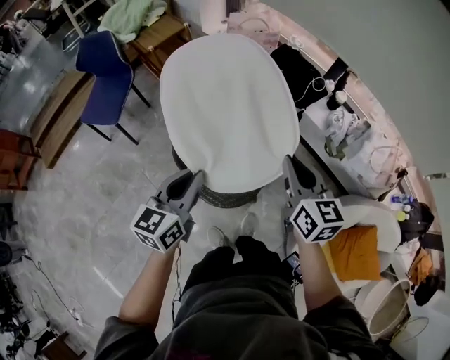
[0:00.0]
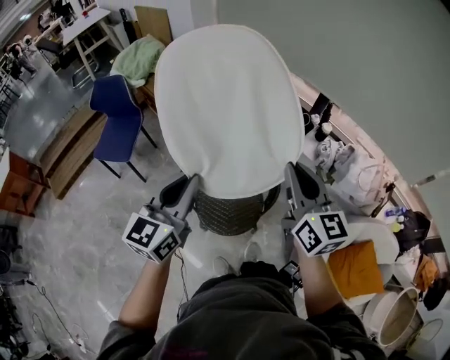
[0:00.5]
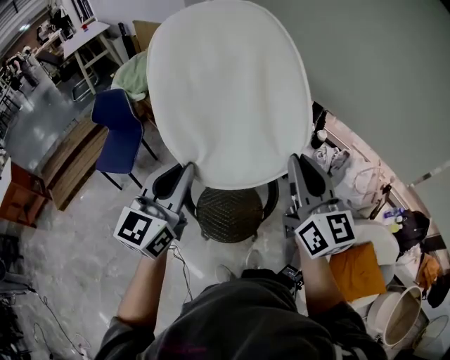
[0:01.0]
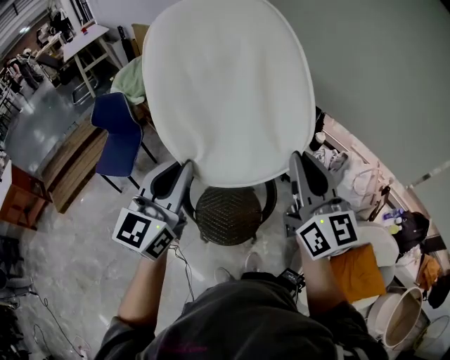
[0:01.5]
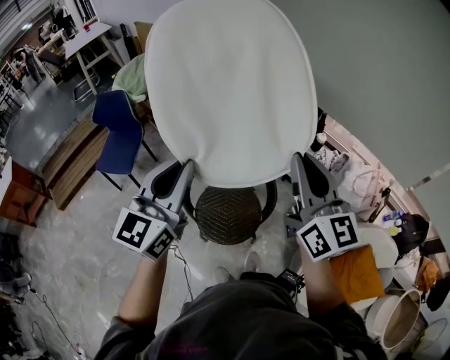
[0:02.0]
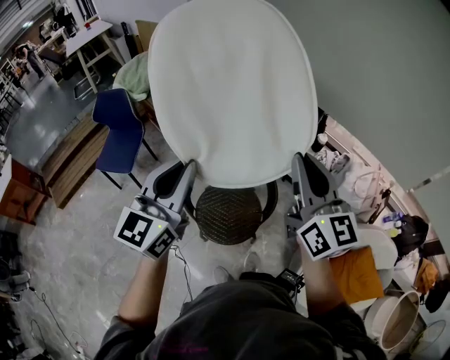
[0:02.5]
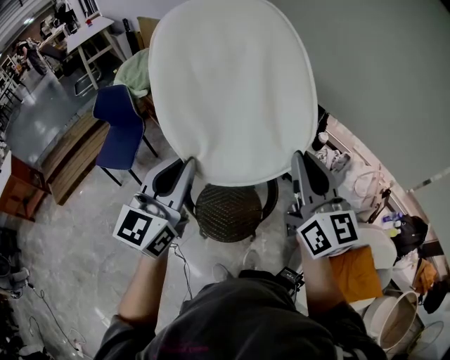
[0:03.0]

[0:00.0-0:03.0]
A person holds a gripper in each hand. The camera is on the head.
0:00.0 to 0:01.5: Both grippers move upward, some 30 cm. The right gripper turns by about 30 degrees; the left gripper rotates about 30 degrees.
0:01.5 to 0:03.0: Both grippers stay about where they are.

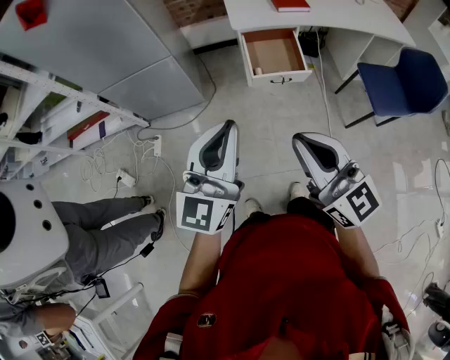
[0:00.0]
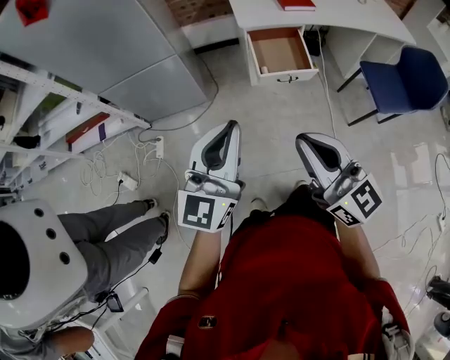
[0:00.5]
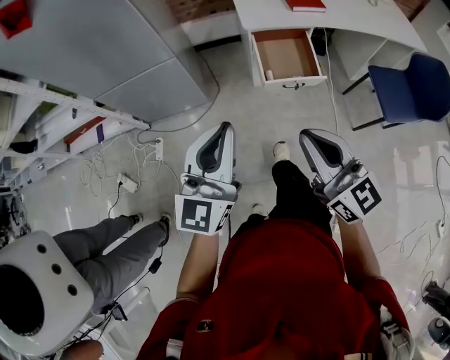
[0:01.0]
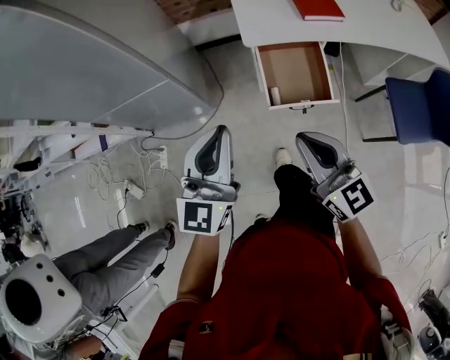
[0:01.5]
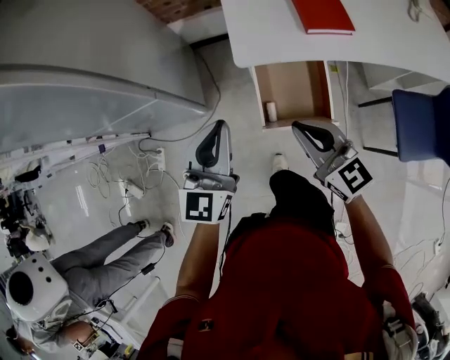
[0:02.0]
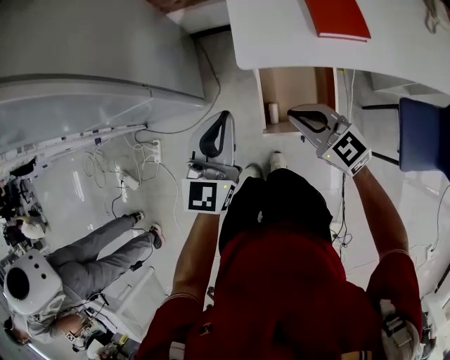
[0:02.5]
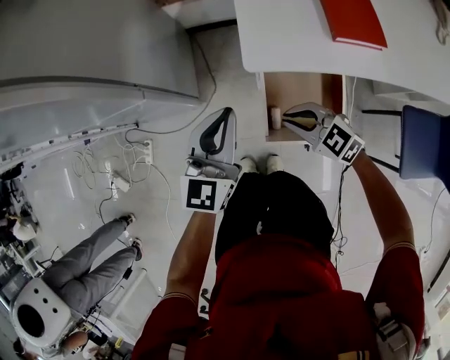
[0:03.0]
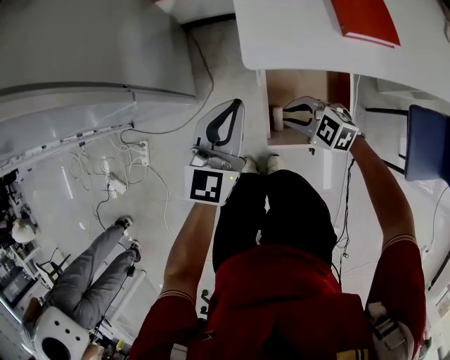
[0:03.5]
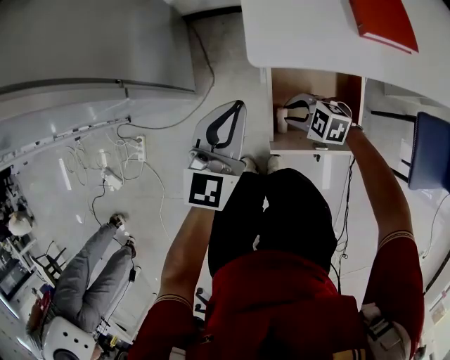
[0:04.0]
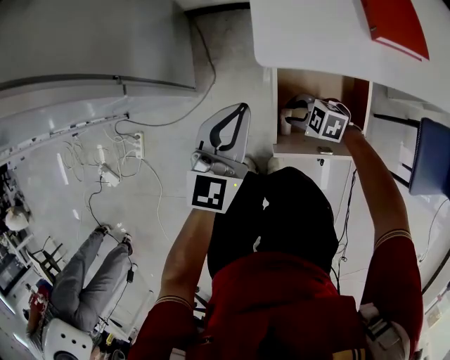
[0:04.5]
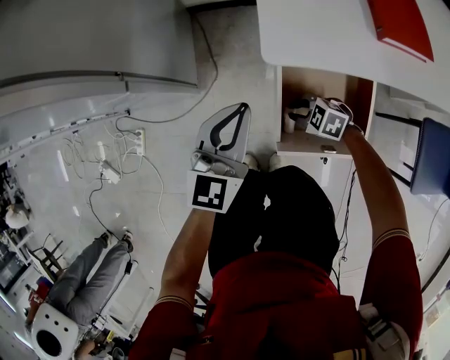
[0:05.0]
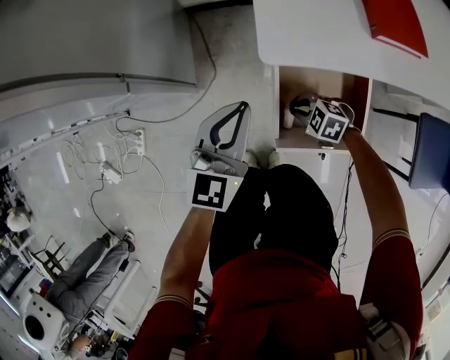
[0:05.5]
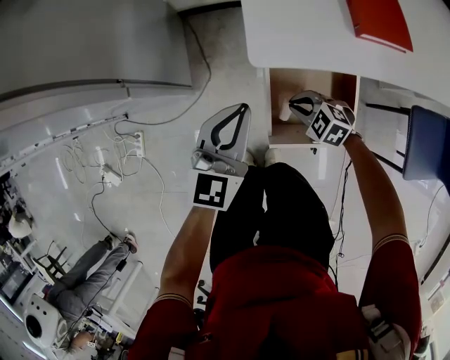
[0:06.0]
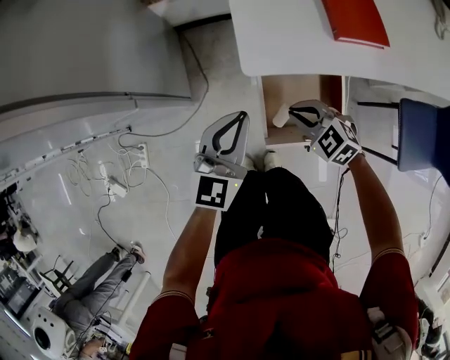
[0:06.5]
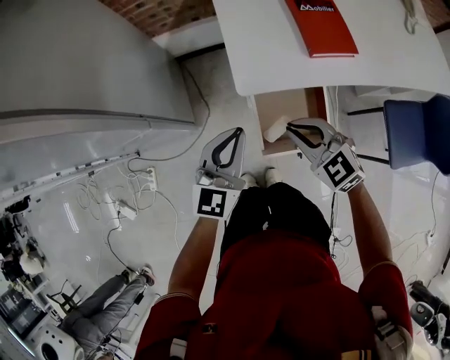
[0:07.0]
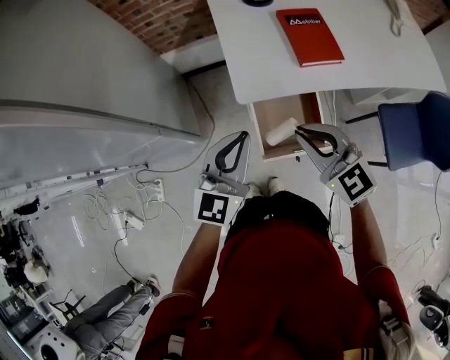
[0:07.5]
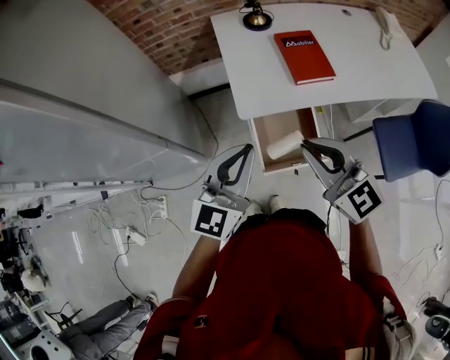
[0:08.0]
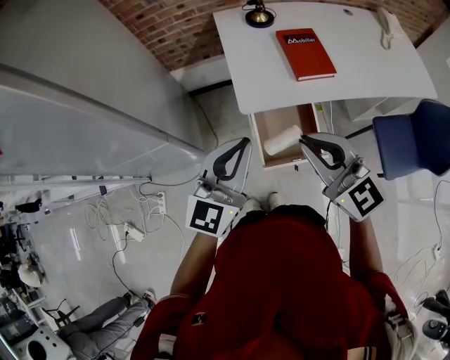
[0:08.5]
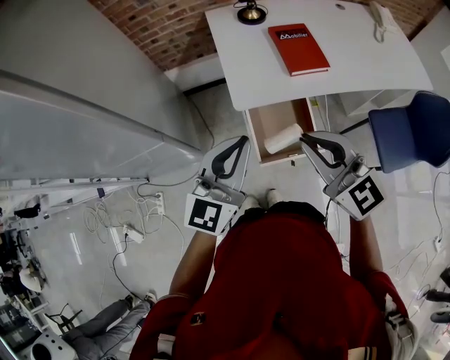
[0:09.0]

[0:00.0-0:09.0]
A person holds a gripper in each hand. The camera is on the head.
0:00.0 to 0:02.0: Both grippers are carried forward, some 50 cm. The right gripper shifts roughly 20 cm downward.
0:02.0 to 0:04.5: The right gripper moves downward, some 40 cm, tips its fingers downward by approximately 40 degrees, and opens up. The left gripper moves downward and forward, about 25 cm.
0:04.5 to 0:07.0: The left gripper shifts some 15 cm upward. Meanwhile the right gripper is displaced upward by about 35 cm, swivels about 40 degrees, and closes.
0:07.0 to 0:09.0: The left gripper shifts roughly 20 cm upward and backward; the right gripper heads upward, covering some 20 cm, and turns by some 30 degrees.

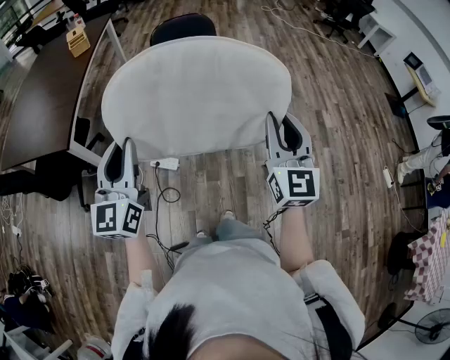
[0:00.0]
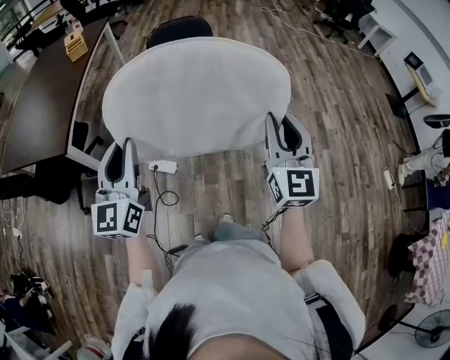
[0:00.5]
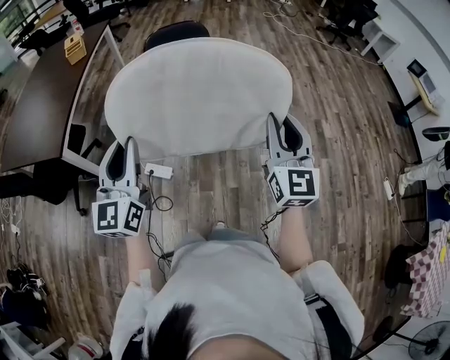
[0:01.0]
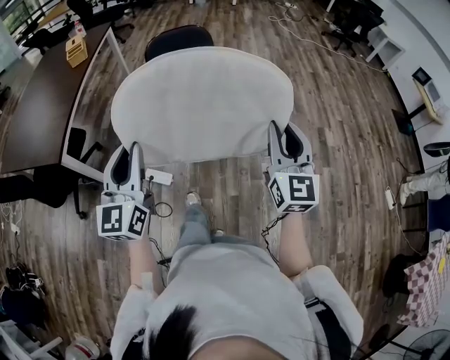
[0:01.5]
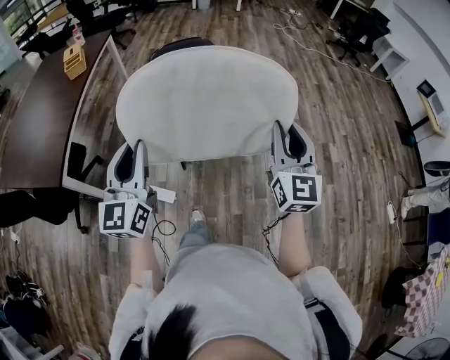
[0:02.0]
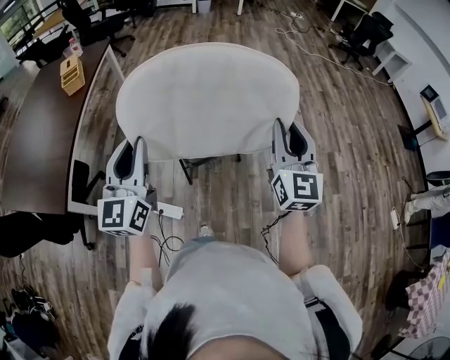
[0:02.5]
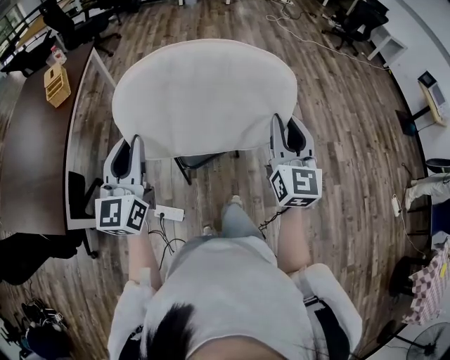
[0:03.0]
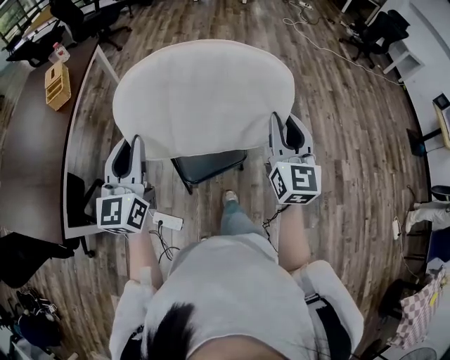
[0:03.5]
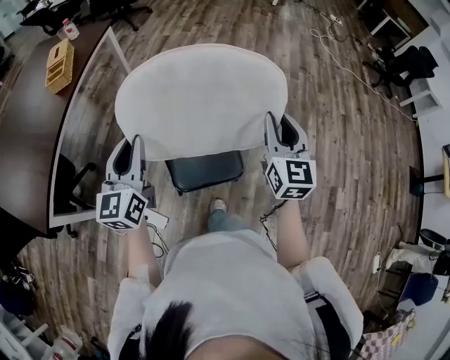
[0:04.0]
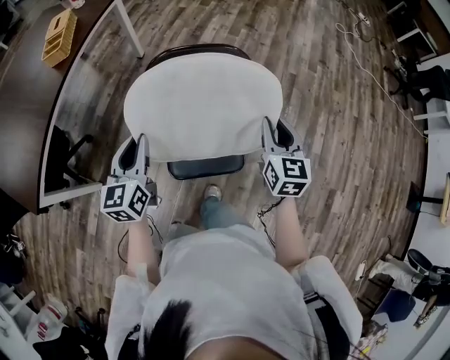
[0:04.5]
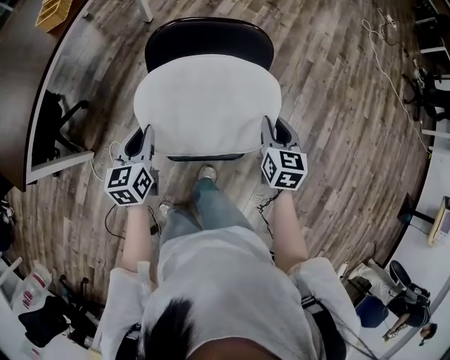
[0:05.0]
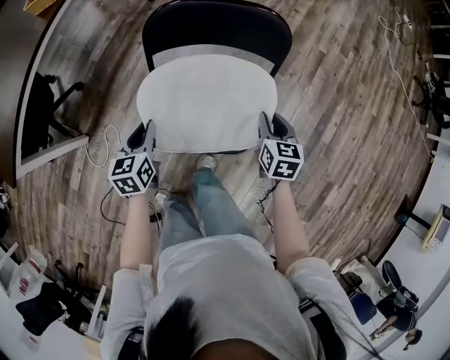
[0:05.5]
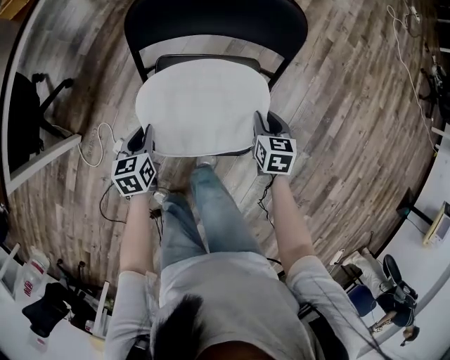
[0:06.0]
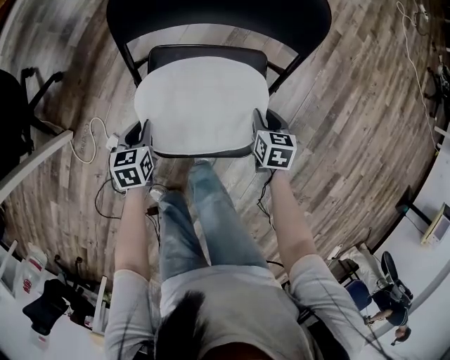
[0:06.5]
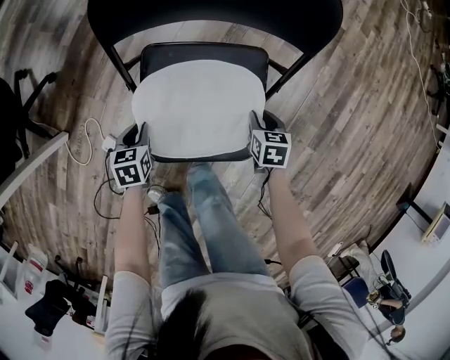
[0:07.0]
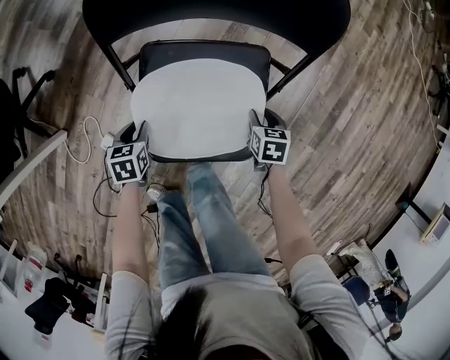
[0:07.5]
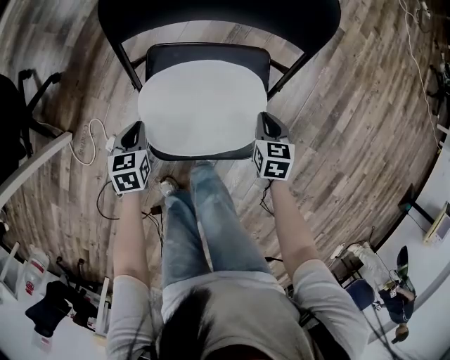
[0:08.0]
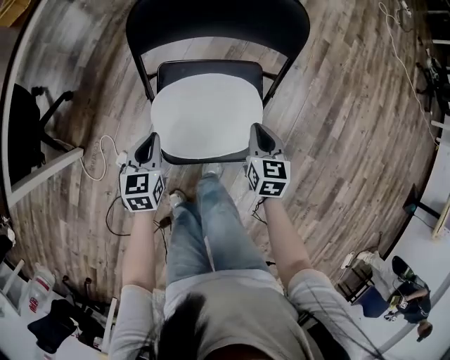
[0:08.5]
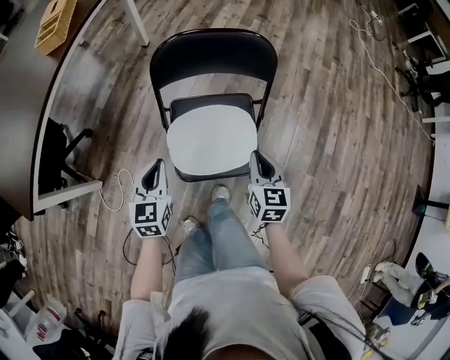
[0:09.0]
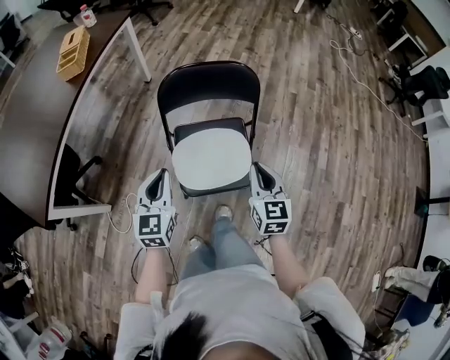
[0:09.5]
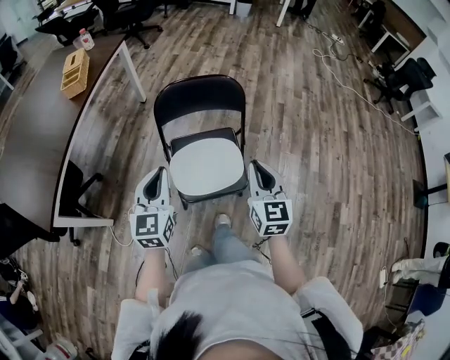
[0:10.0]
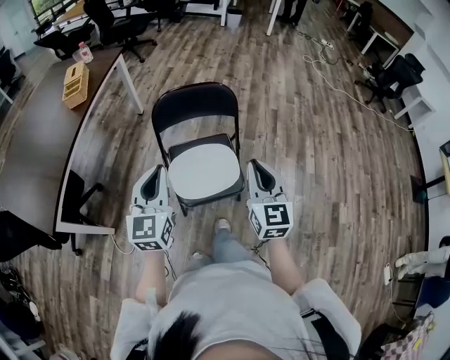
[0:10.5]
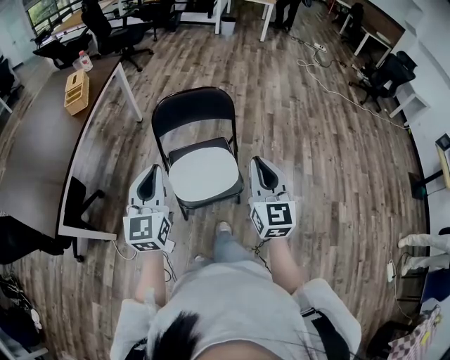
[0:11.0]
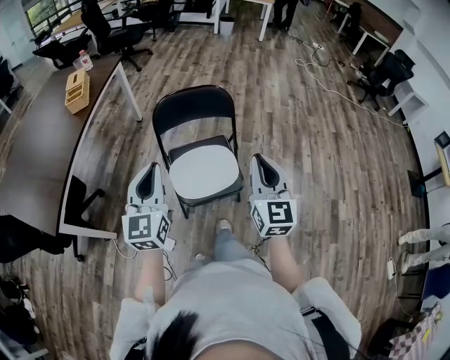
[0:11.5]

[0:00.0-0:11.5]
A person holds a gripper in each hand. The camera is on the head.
0:00.0 to 0:02.0: Both grippers travel together forward, approximately 20 cm.
0:02.0 to 0:04.0: Both grippers move forward, approximately 40 cm.
0:04.0 to 0:06.0: Both grippers travel together downward, about 40 cm. The right gripper angles its fingers downward, by approximately 40 degrees, while the left gripper tilts its fingers roughly 50 degrees downward.
0:06.0 to 0:07.5: The grippers both shift downward by approximately 15 cm.
0:07.5 to 0:09.5: Both grippers travel together upward, some 40 cm. The right gripper points its fingers approximately 40 degrees further upward, and closes up, while the left gripper tips its fingers upward by about 50 degrees.
0:09.5 to 0:11.5: Both grippers travel together upward and backward, approximately 20 cm. The right gripper swivels some 20 degrees.

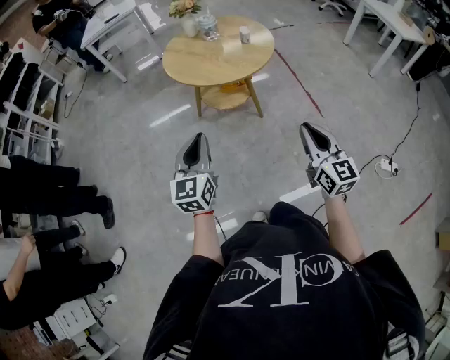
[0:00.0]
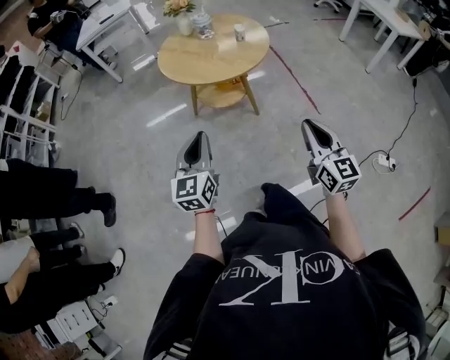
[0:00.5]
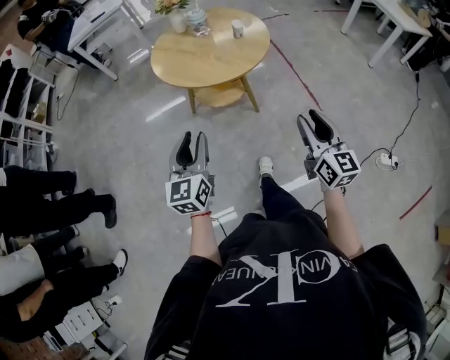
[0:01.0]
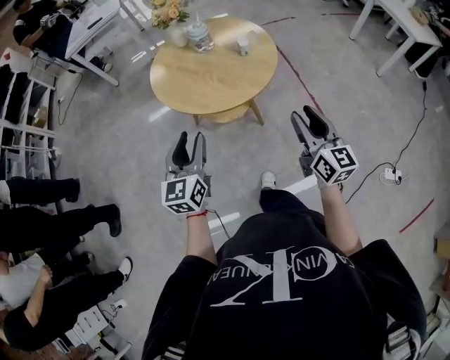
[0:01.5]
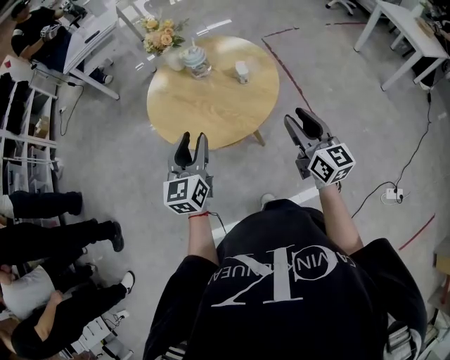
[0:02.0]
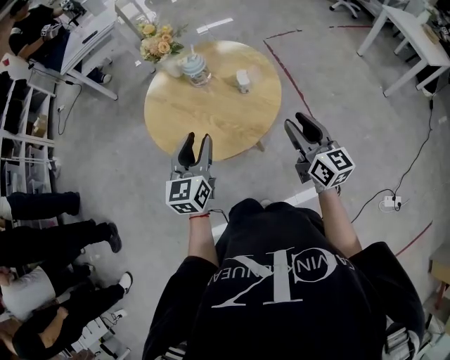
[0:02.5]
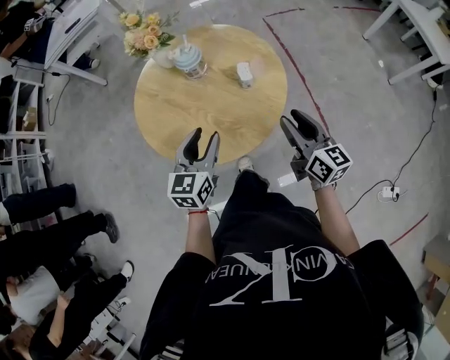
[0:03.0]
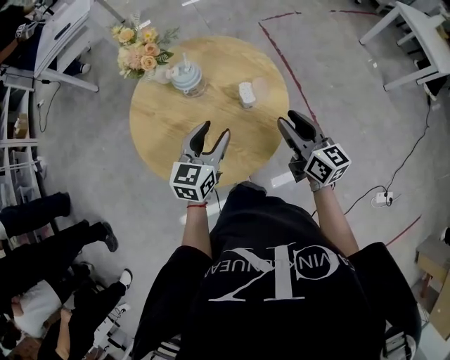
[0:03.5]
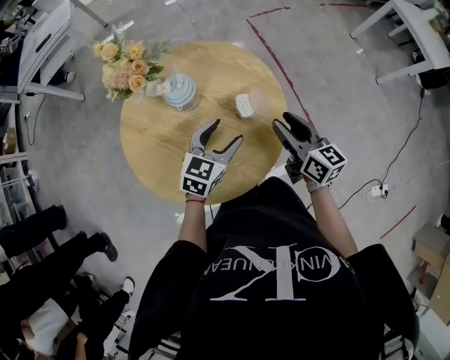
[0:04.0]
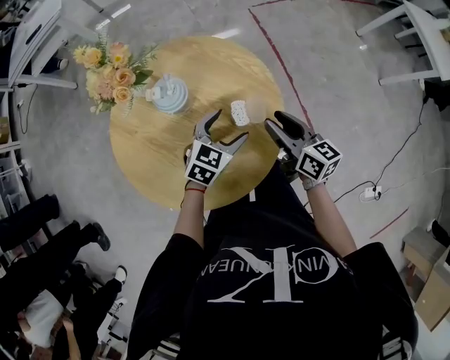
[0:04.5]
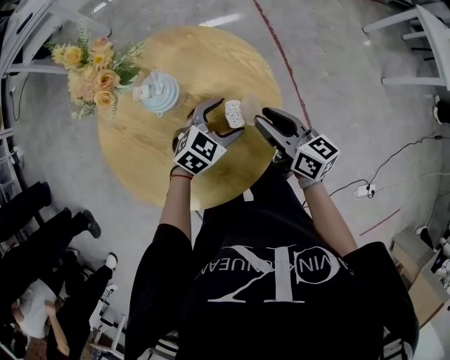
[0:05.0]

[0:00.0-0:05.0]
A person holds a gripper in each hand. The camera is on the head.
0:00.0 to 0:02.5: The grippers both shift forward by approximately 35 cm. The left gripper opens up. Meanwhile the right gripper opens its fingers.
0:02.5 to 0:05.0: The right gripper travels forward and downward by approximately 25 cm, and turns by about 30 degrees; the left gripper is displaced forward, downward and to the right by some 35 cm, tips its fingers downward by roughly 30 degrees, and opens its fingers.
